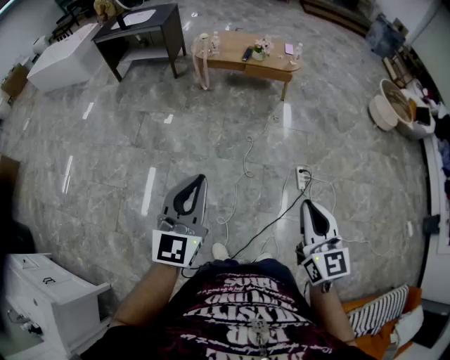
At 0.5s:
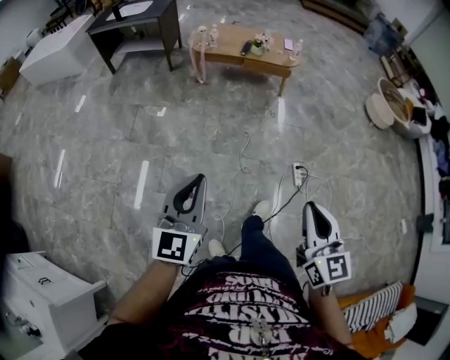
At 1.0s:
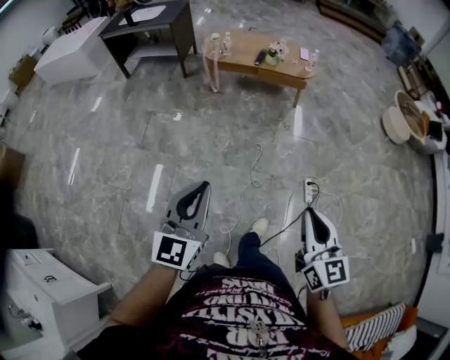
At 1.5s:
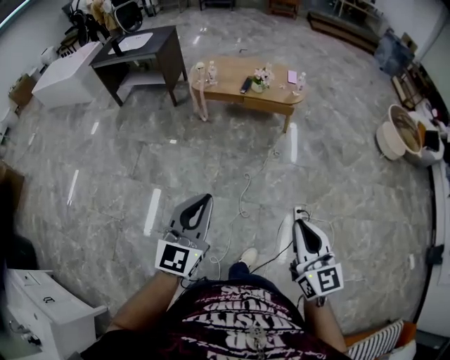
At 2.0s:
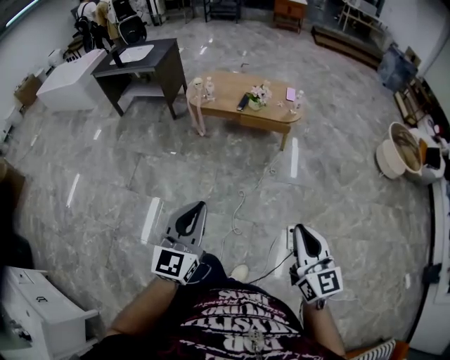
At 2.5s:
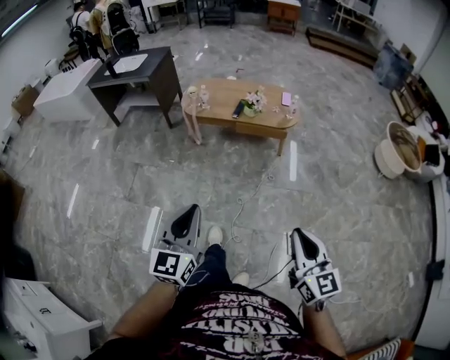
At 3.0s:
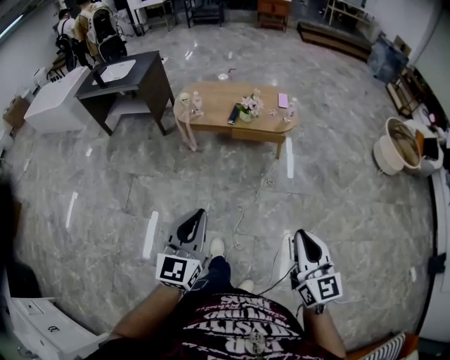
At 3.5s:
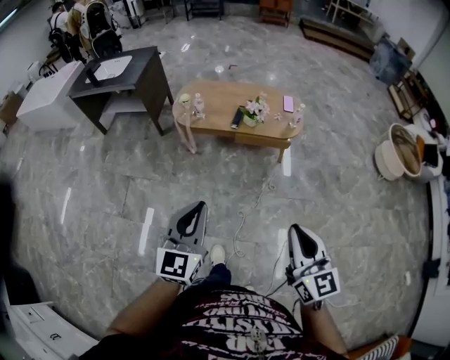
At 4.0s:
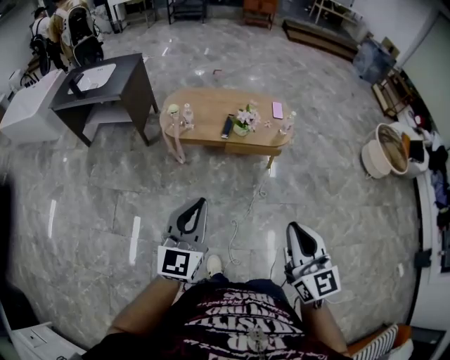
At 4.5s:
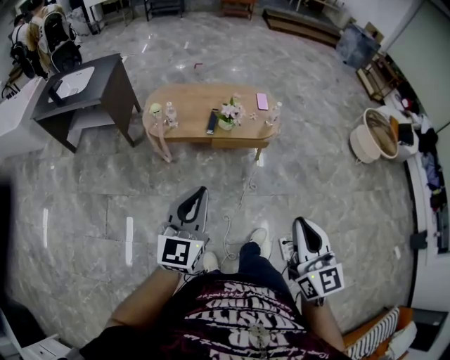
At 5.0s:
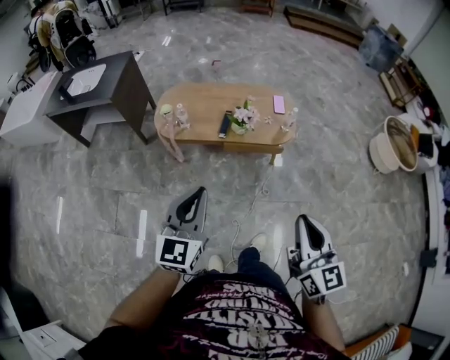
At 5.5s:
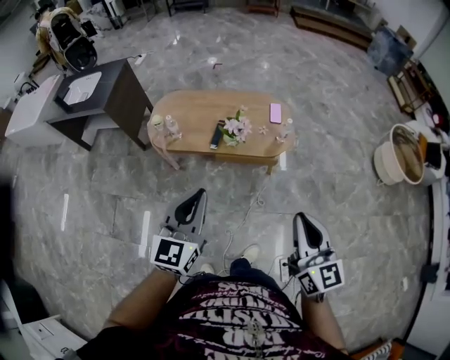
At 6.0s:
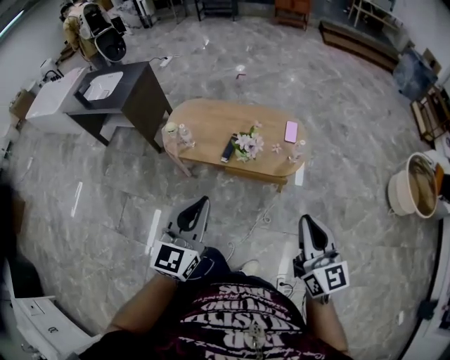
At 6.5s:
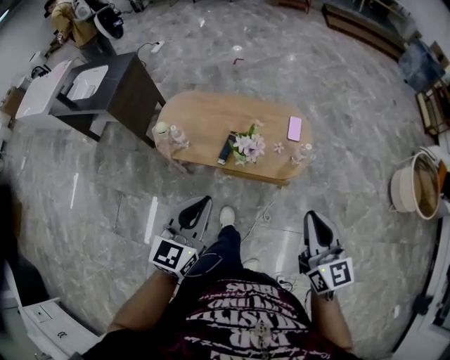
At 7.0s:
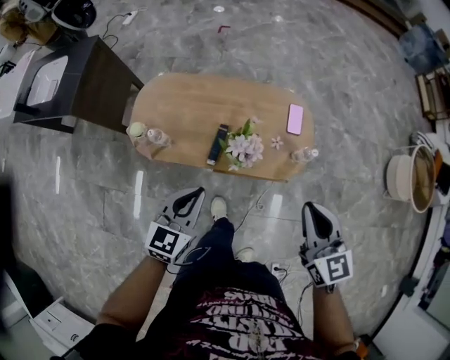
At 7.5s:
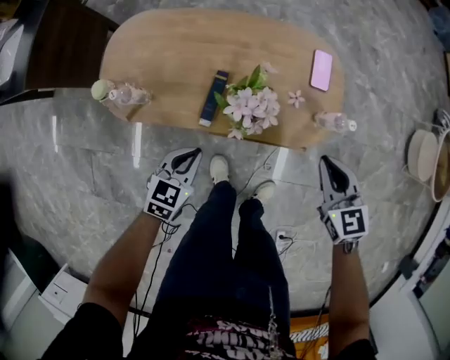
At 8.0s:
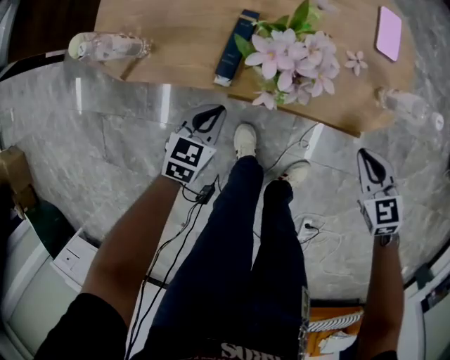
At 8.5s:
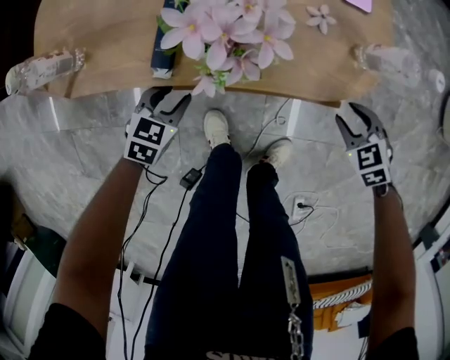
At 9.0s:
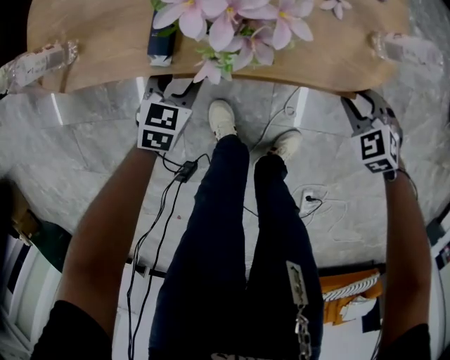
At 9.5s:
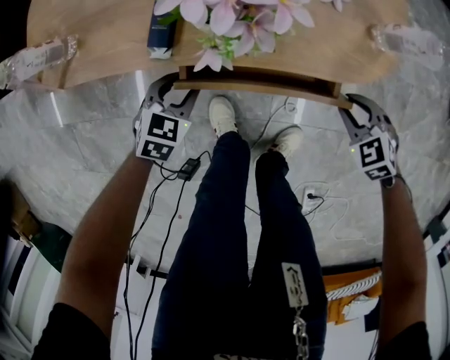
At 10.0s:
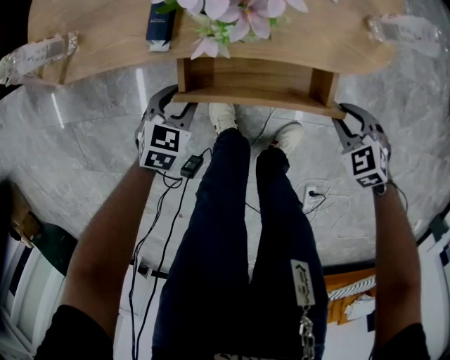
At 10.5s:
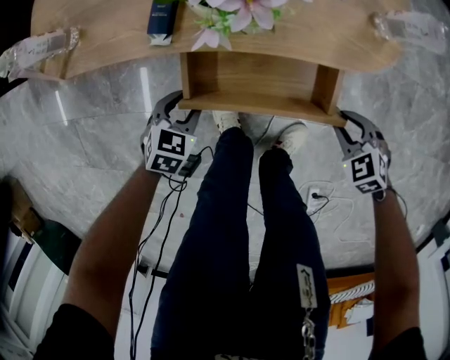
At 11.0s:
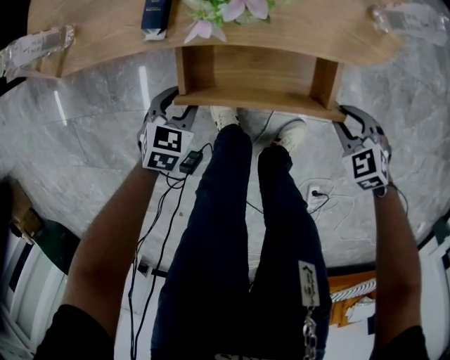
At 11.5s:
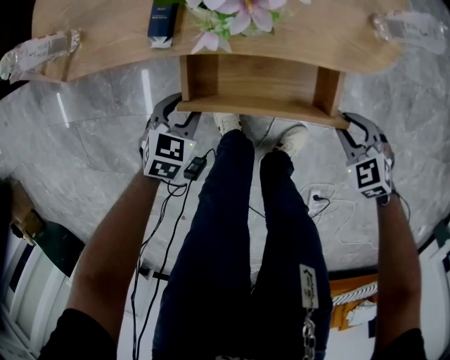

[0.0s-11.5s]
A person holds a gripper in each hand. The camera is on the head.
0.0s to 2.0s: Both grippers travel together forward and to the right, approximately 30 cm.
2.0s to 4.0s: The right gripper travels forward and to the left by about 30 cm, while the left gripper goes roughly 30 cm forward.
4.0s to 6.0s: The two grippers go some 30 cm forward and to the right.
6.0s to 7.5s: Both grippers travel together downward and forward, roughly 50 cm. The right gripper angles its fingers downward, by some 30 degrees. The left gripper tilts its fingers approximately 40 degrees downward.
7.5s to 9.5s: The two grippers go about 30 cm downward. The right gripper turns by about 40 degrees, and opens; the left gripper opens.
9.5s to 11.5s: Both grippers move backward, approximately 5 cm.

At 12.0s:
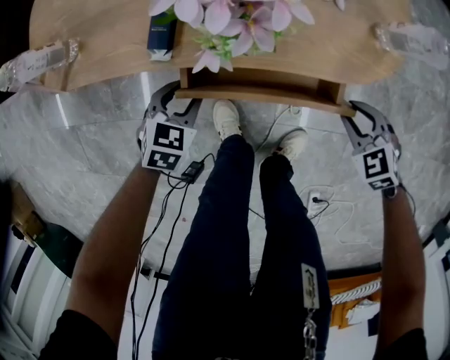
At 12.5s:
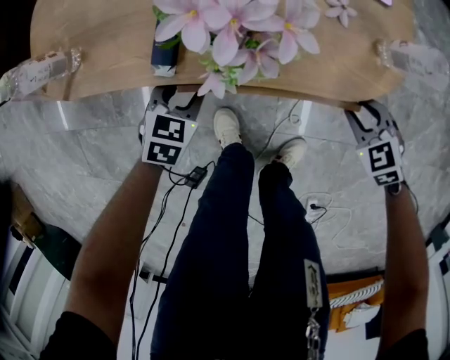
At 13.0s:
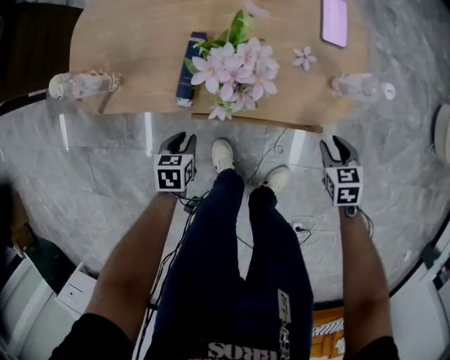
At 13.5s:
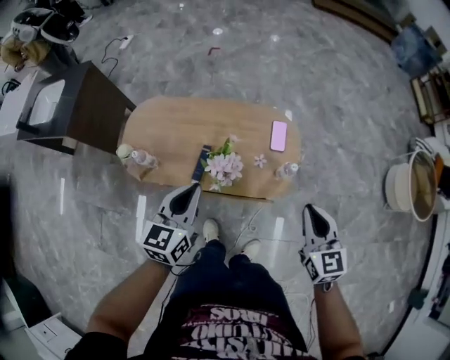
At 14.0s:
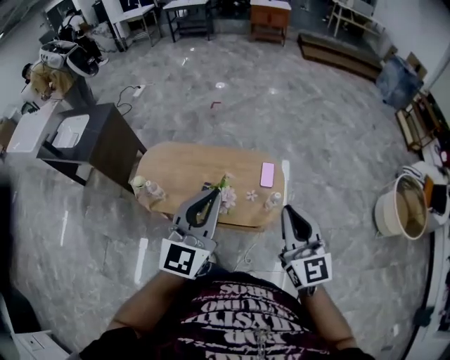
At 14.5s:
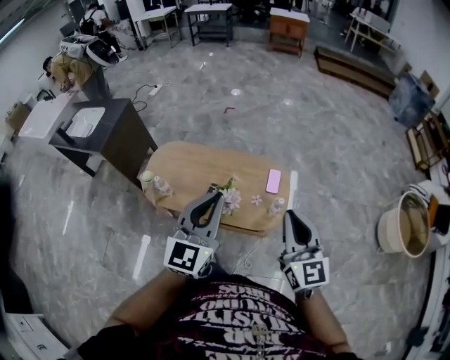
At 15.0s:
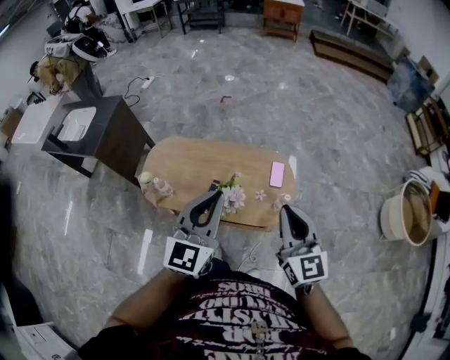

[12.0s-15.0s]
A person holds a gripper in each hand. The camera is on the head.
12.0s to 13.5s: Both grippers move upward, about 50 cm. The left gripper tilts its fingers some 40 degrees upward, and closes its fingers. The right gripper tips its fingers upward by some 40 degrees, and closes.
13.5s to 15.0s: The right gripper travels upward and to the left by roughly 20 cm, and swivels approximately 20 degrees. Meanwhile the left gripper is displaced upward by some 20 cm, and turns by roughly 20 degrees.

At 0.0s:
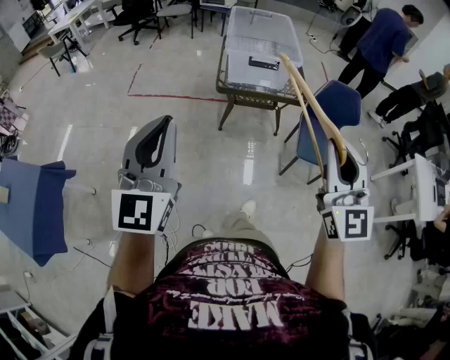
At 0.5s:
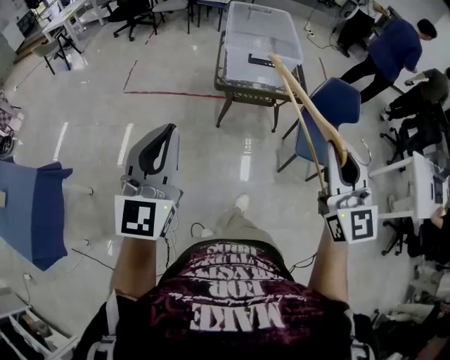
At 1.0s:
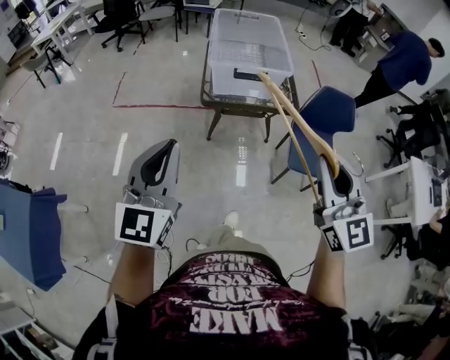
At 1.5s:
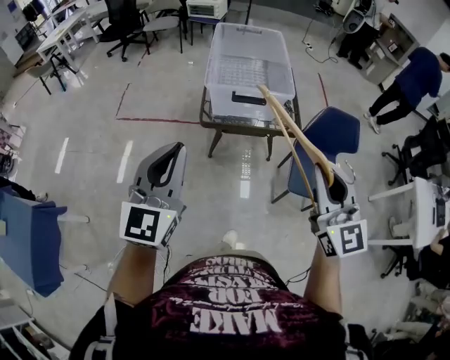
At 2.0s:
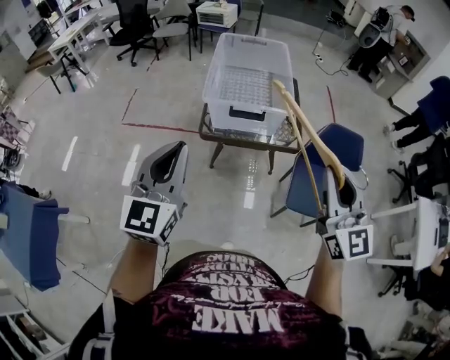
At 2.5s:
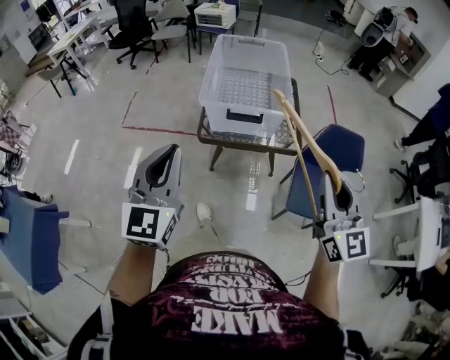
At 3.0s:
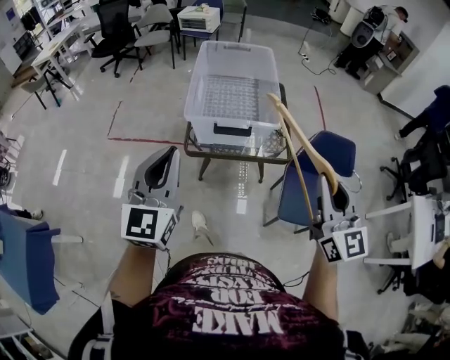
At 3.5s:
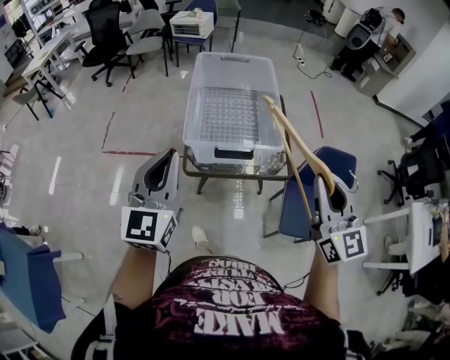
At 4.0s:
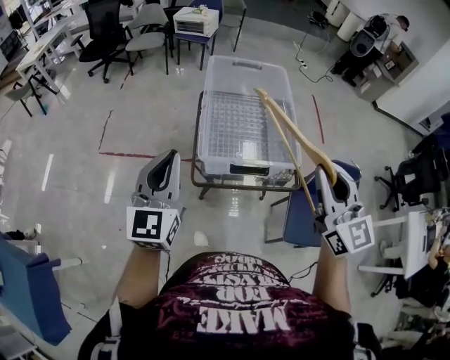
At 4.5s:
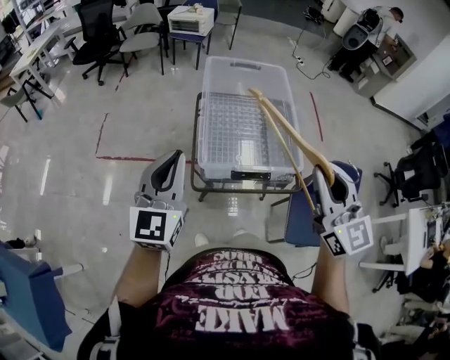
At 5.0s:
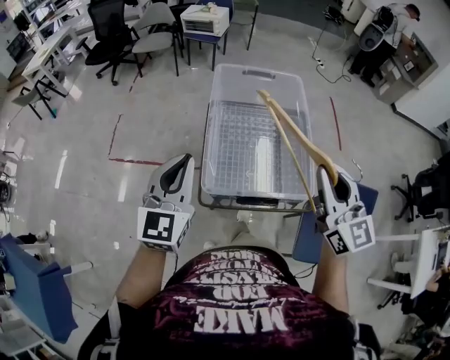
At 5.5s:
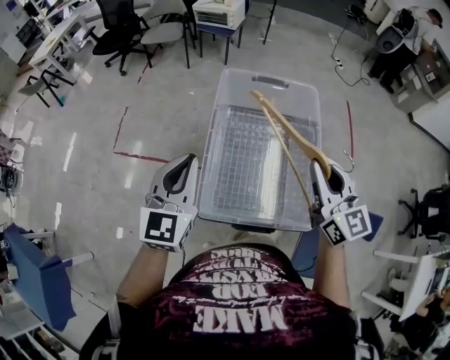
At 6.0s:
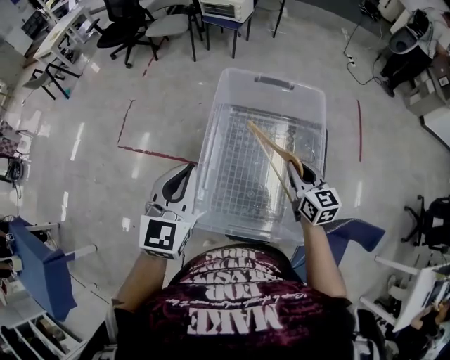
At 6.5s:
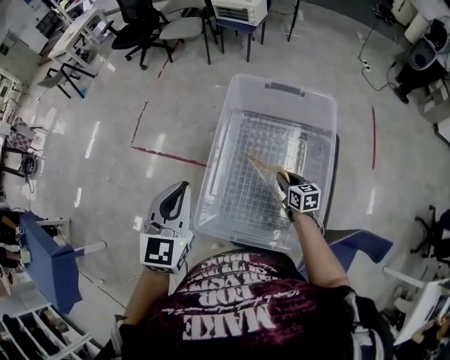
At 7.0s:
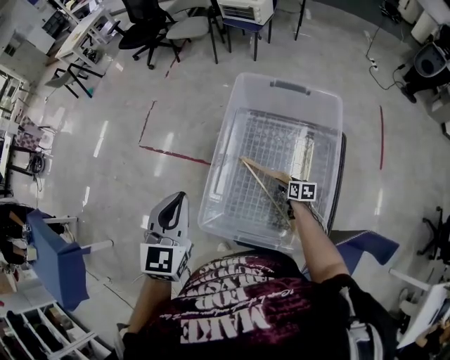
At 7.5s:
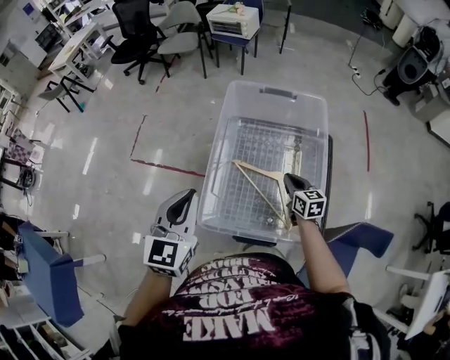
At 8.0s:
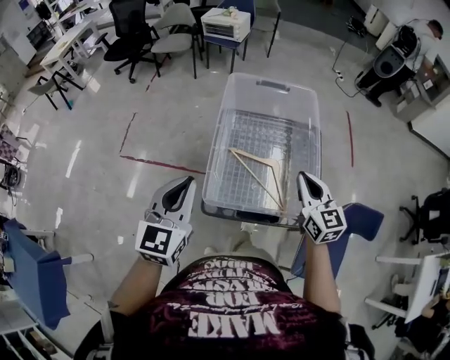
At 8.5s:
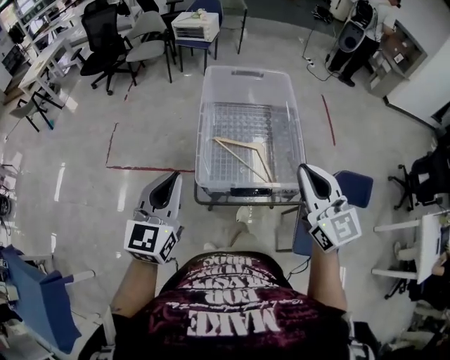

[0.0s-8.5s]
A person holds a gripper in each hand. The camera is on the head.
0.0s to 2.0s: The grippers both shift forward and to the right by roughly 25 cm.
2.0s to 4.0s: Both grippers move forward, approximately 25 cm.
4.0s to 6.5s: The right gripper heads downward and forward, covering some 60 cm, and tips its fingers downward by about 40 degrees; the left gripper heads forward, covering about 20 cm, and rotates some 20 degrees.
6.5s to 8.5s: The left gripper goes about 15 cm backward and to the left, and changes its angle by some 20 degrees, while the right gripper heads upward and backward, covering about 50 cm, angles its fingers upward, by approximately 30 degrees, and opens, then closes again.

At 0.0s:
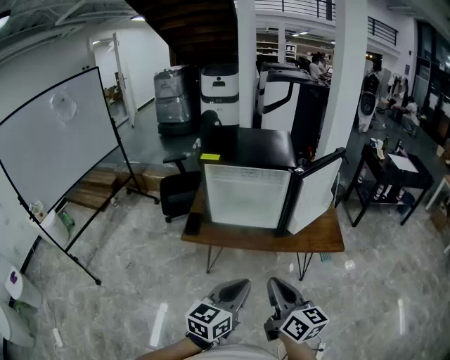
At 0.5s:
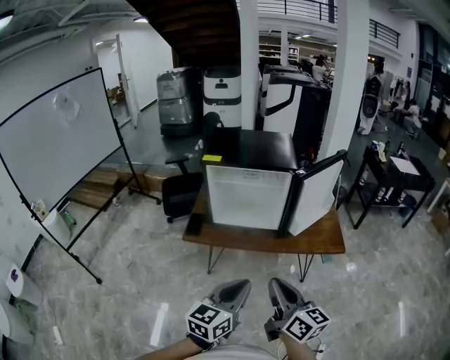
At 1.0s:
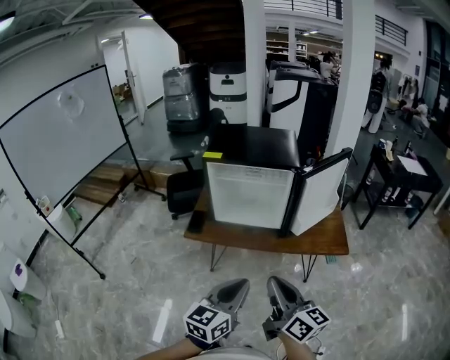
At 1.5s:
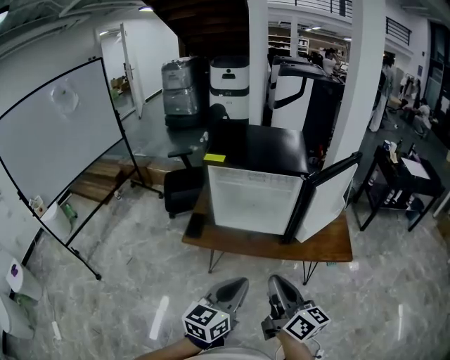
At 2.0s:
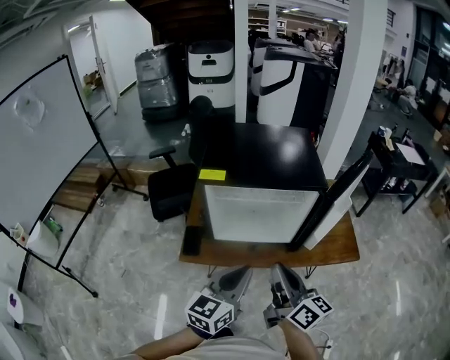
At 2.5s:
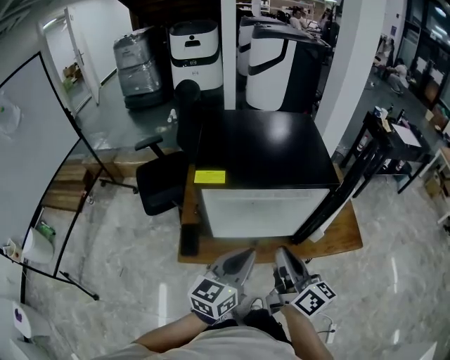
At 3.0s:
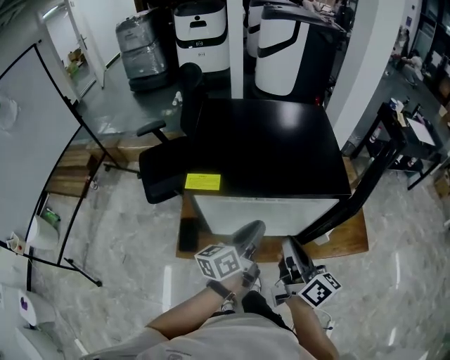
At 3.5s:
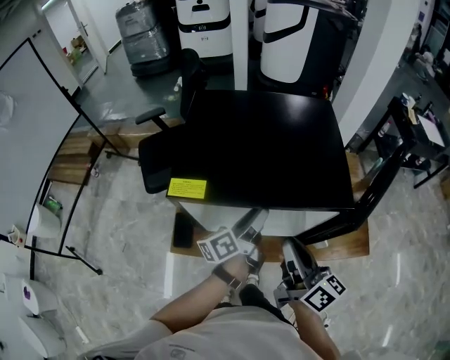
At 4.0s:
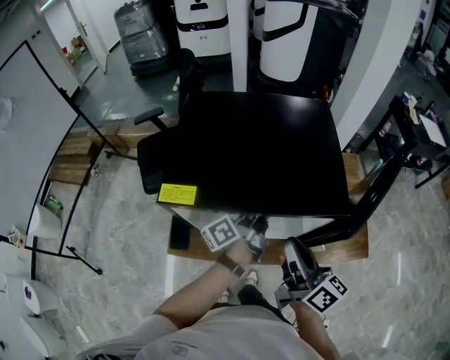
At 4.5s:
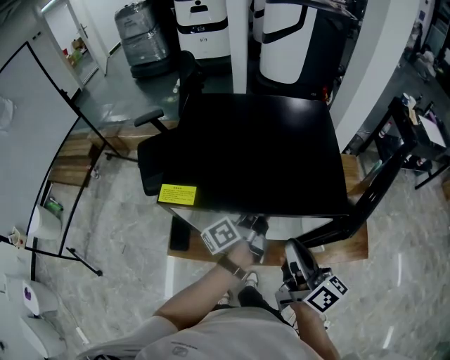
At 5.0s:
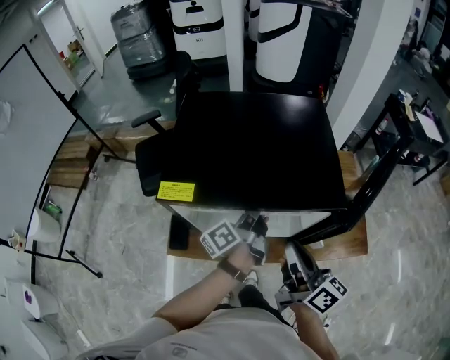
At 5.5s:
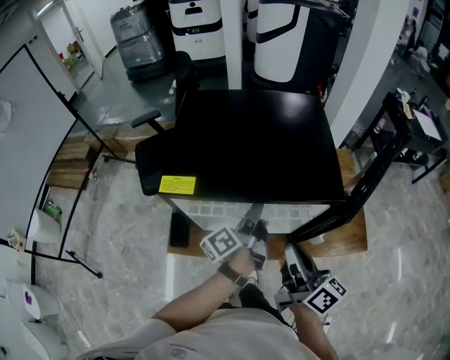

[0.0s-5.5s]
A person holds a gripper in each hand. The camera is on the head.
0.0s to 2.0s: The grippers both shift forward by approximately 20 cm.
2.0s to 3.5s: The left gripper shifts approximately 25 cm forward, rolls counterclockwise, seen from behind, by some 50 degrees, and opens, while the right gripper travels forward by roughly 15 cm.
3.5s to 5.5s: The left gripper closes.
